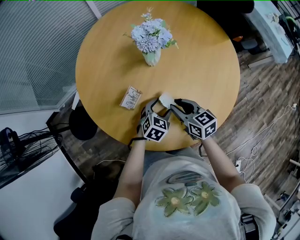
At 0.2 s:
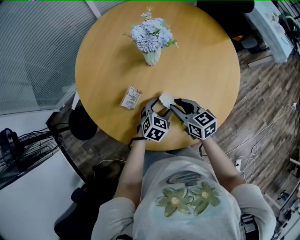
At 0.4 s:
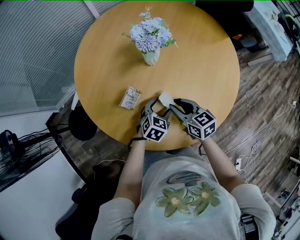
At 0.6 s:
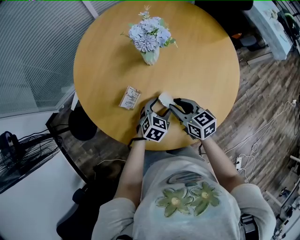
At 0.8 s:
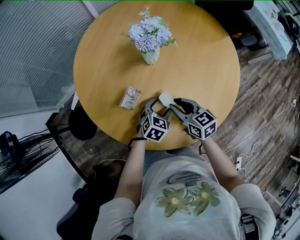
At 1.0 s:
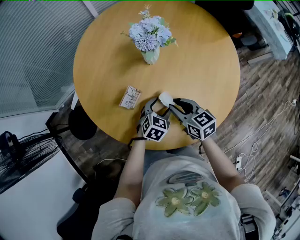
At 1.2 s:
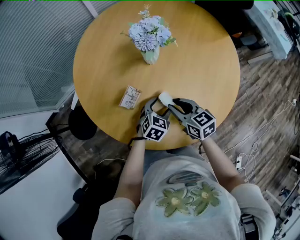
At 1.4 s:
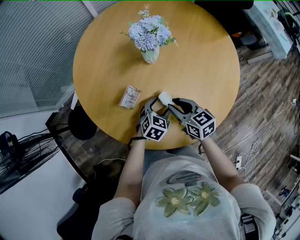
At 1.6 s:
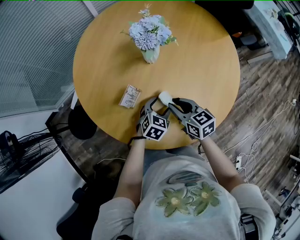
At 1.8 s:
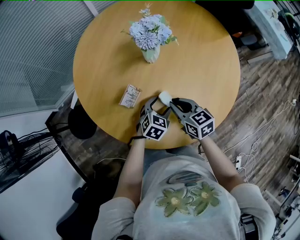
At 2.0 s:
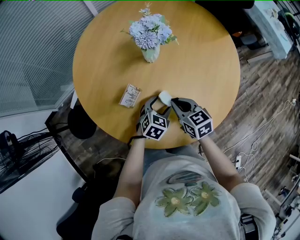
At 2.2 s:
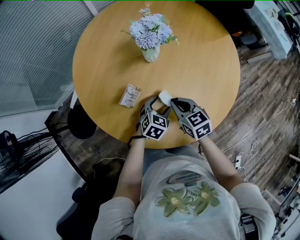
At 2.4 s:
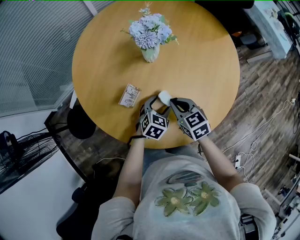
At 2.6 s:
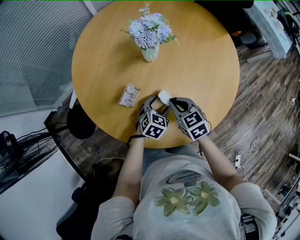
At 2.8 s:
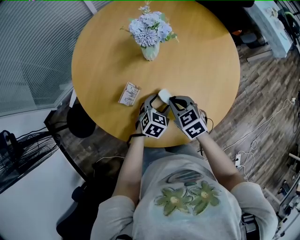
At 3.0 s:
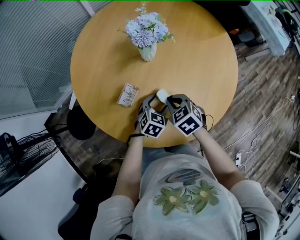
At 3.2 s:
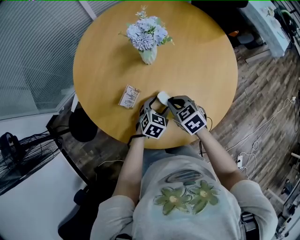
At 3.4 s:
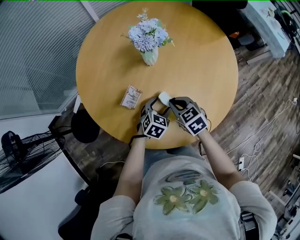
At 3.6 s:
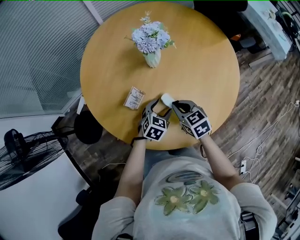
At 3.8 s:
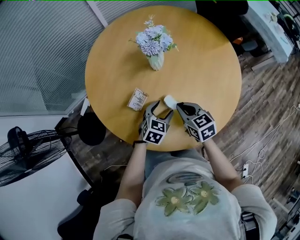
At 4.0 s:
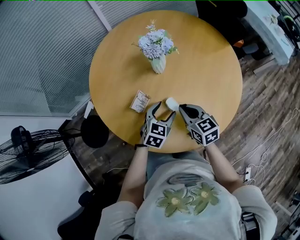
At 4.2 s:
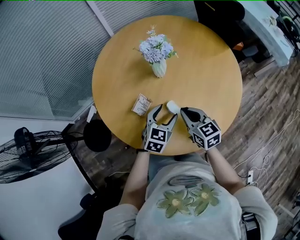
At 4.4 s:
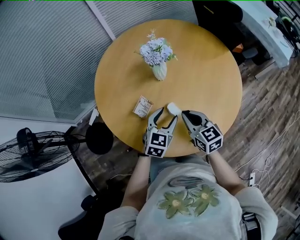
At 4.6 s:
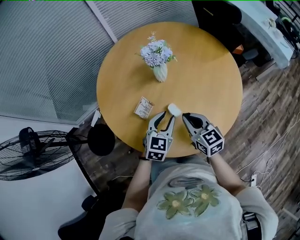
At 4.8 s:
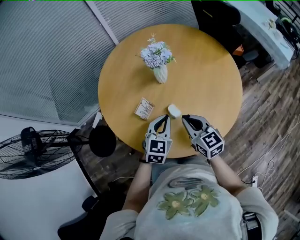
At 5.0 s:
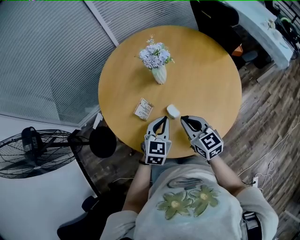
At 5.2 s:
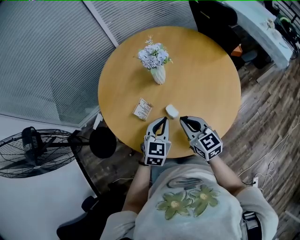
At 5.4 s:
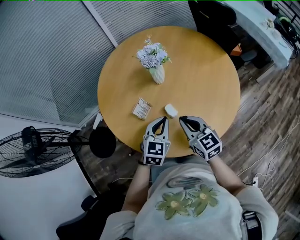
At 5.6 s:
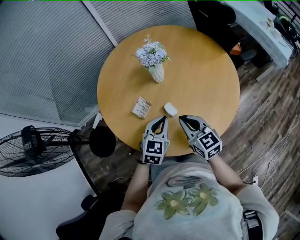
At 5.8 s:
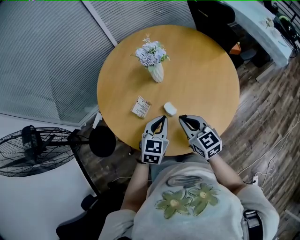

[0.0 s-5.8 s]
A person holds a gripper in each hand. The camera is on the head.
0.0 to 1.4 s: Both grippers stay about where they are.
1.4 to 2.8 s: The right gripper rotates about 30 degrees, and closes up.
2.8 to 4.4 s: Both grippers travel together upward, about 10 cm. The right gripper turns by approximately 30 degrees.
4.4 to 5.8 s: The left gripper changes place by roughly 5 cm, and closes. The right gripper shifts by approximately 5 cm.

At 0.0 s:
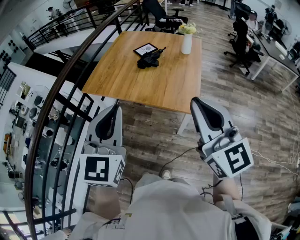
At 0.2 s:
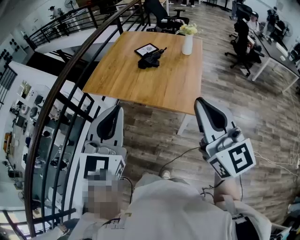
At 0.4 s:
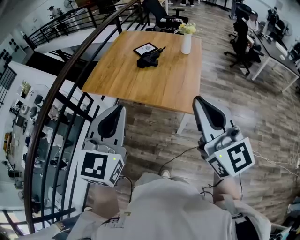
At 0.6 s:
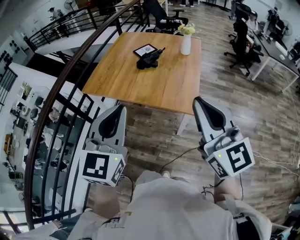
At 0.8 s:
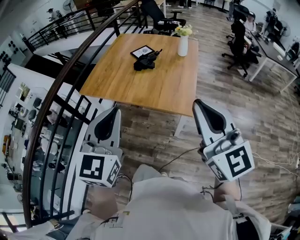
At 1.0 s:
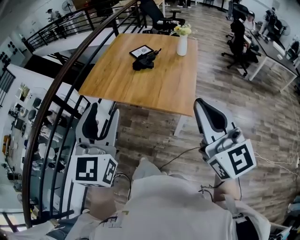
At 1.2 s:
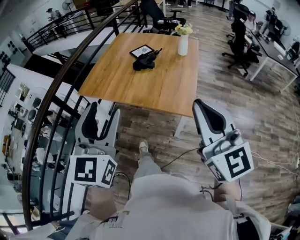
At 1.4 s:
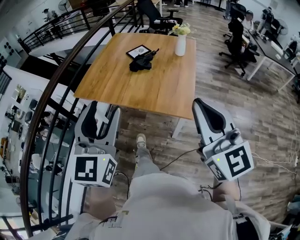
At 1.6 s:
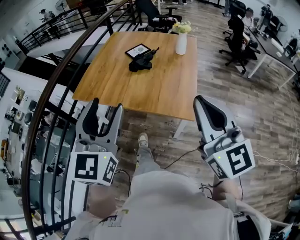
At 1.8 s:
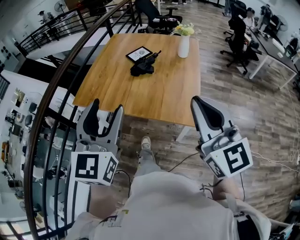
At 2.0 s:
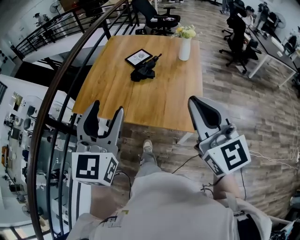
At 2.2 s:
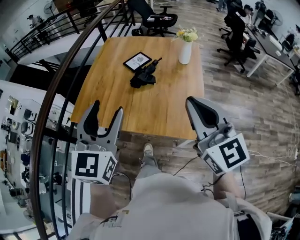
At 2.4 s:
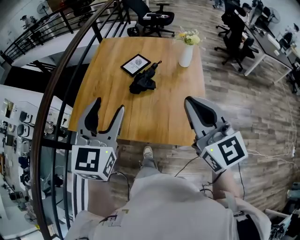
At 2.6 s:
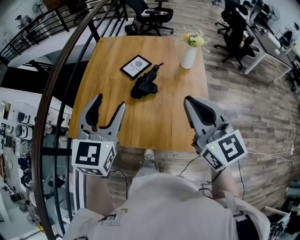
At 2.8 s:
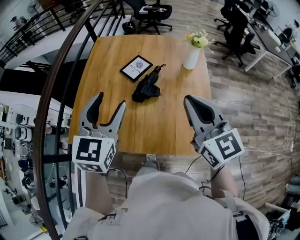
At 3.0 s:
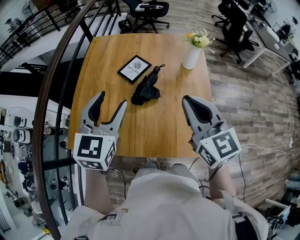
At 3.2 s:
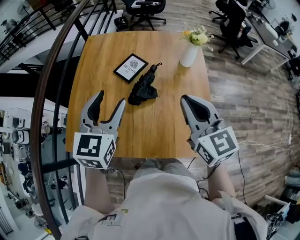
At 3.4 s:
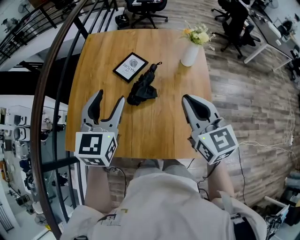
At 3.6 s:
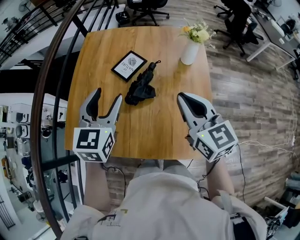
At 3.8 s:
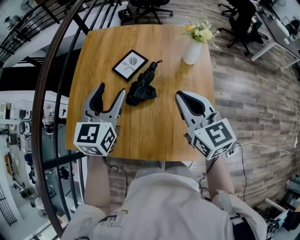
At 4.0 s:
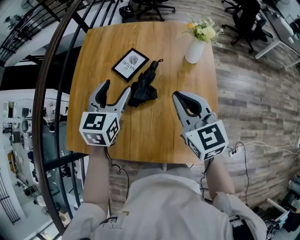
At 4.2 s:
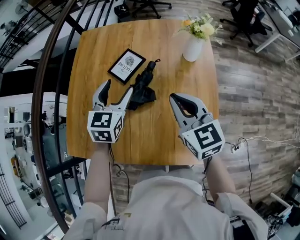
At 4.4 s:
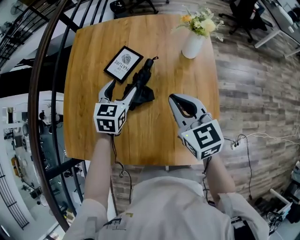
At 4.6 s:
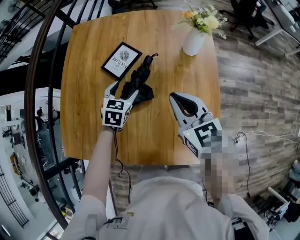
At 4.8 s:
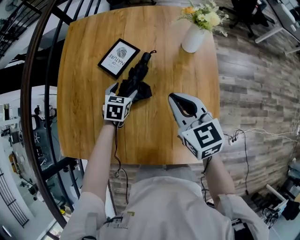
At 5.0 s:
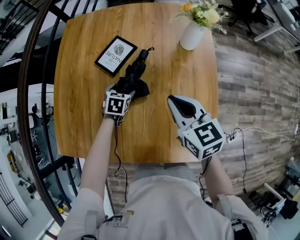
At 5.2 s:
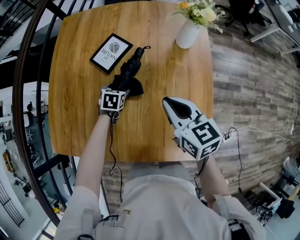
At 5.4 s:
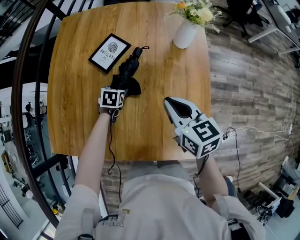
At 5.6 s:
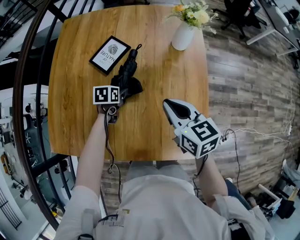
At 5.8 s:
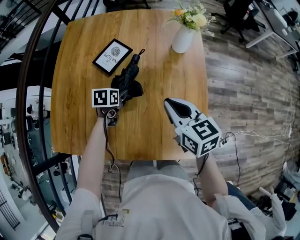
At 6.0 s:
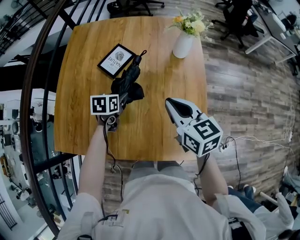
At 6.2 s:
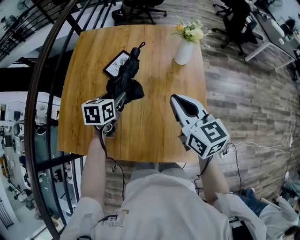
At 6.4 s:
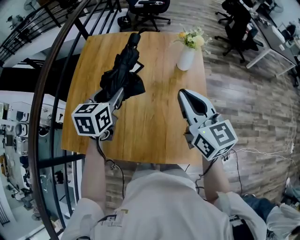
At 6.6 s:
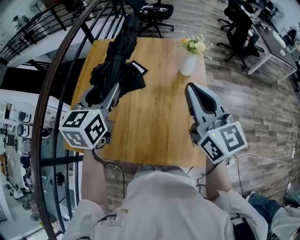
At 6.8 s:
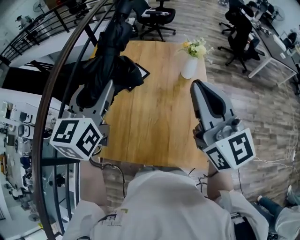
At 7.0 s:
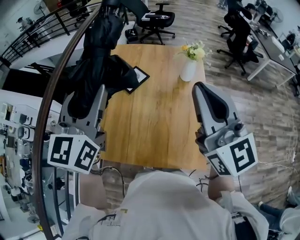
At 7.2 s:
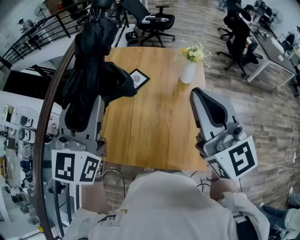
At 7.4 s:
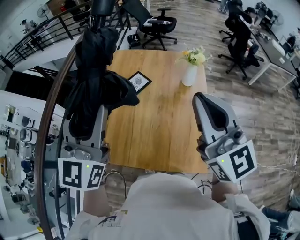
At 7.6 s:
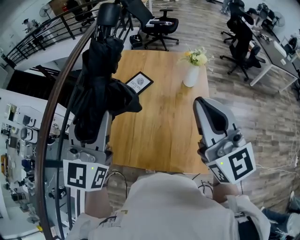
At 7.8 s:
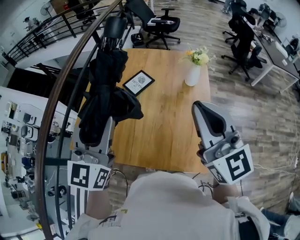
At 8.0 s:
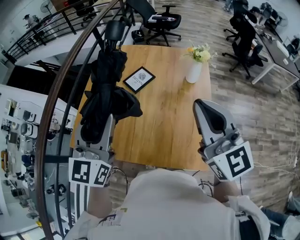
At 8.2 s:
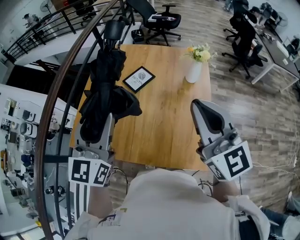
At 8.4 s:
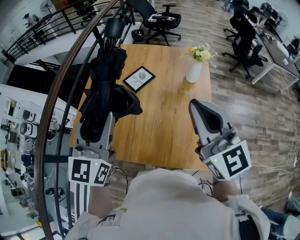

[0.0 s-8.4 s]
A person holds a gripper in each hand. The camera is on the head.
0.0 to 1.4 s: The left gripper opens its fingers.
1.4 to 2.8 s: The two grippers travel together, forward, roughly 50 cm. The left gripper swivels roughly 20 degrees.
2.8 to 4.2 s: The left gripper goes about 30 cm forward, downward and to the right, while the right gripper moves downward and forward, approximately 20 cm.
4.2 to 5.6 s: The right gripper heads downward, covering about 10 cm; the left gripper heads downward, covering some 30 cm, and tilts its fingers approximately 30 degrees downward.
5.6 to 7.0 s: The right gripper shifts about 35 cm upward, and points its fingers approximately 40 degrees further upward, while the left gripper shifts approximately 60 cm upward, and points its fingers approximately 60 degrees further upward.
7.0 to 8.4 s: The right gripper shifts by roughly 5 cm; the left gripper is displaced backward and downward by roughly 10 cm.

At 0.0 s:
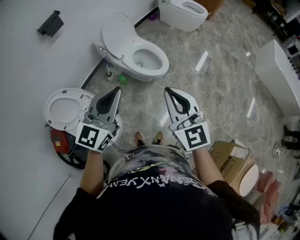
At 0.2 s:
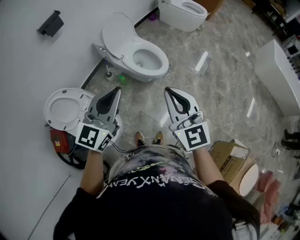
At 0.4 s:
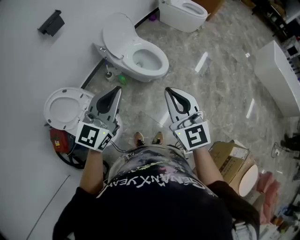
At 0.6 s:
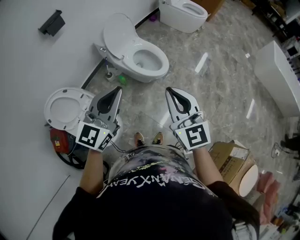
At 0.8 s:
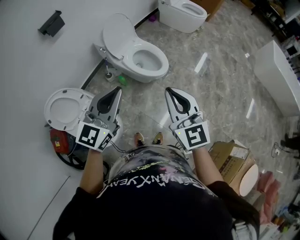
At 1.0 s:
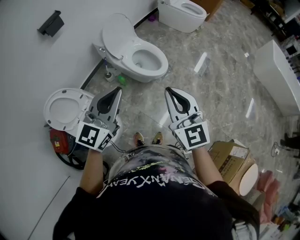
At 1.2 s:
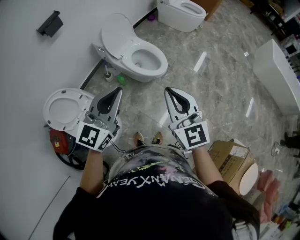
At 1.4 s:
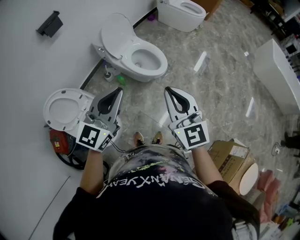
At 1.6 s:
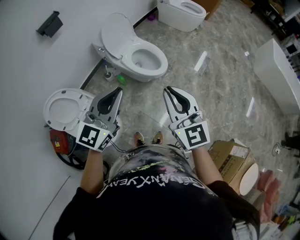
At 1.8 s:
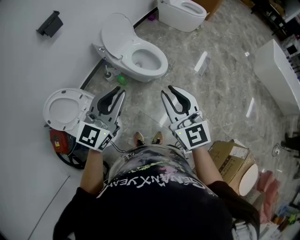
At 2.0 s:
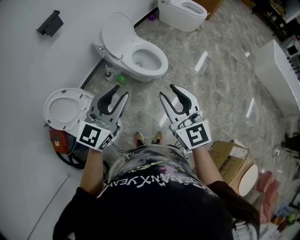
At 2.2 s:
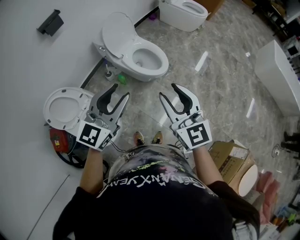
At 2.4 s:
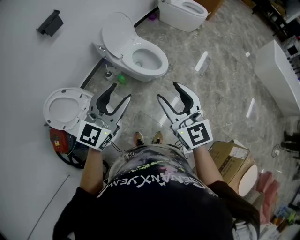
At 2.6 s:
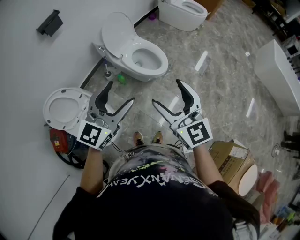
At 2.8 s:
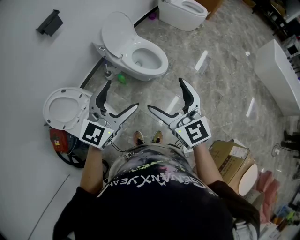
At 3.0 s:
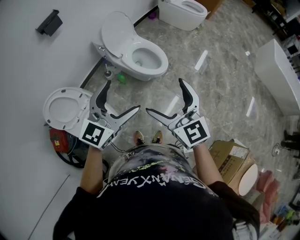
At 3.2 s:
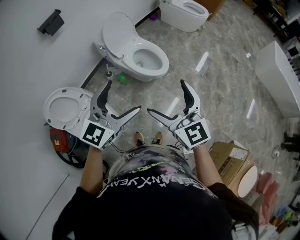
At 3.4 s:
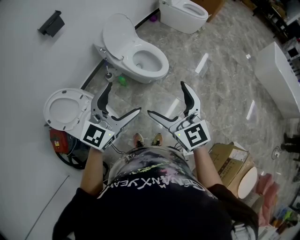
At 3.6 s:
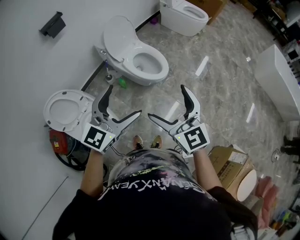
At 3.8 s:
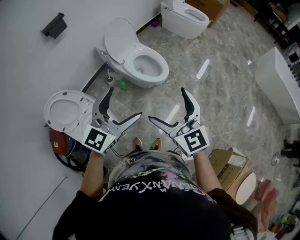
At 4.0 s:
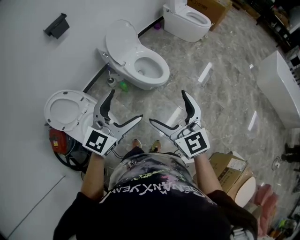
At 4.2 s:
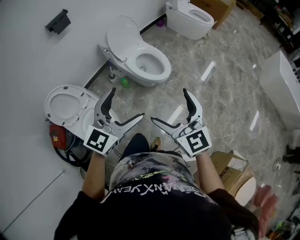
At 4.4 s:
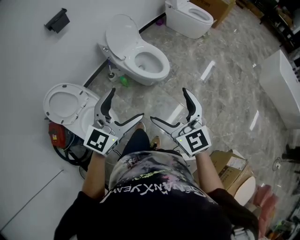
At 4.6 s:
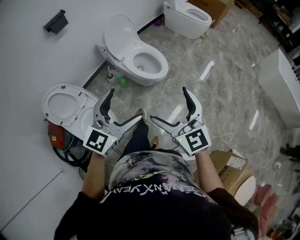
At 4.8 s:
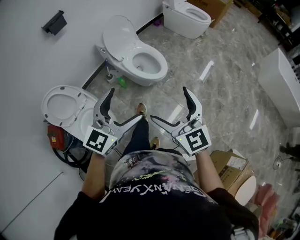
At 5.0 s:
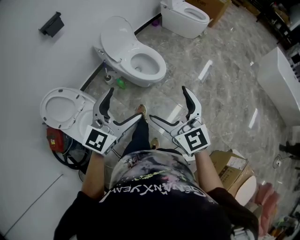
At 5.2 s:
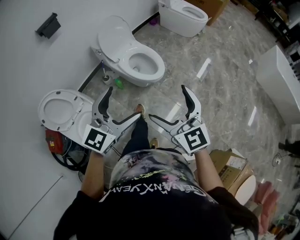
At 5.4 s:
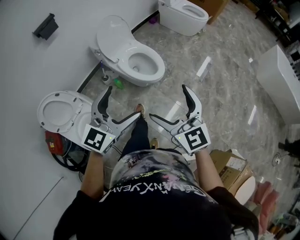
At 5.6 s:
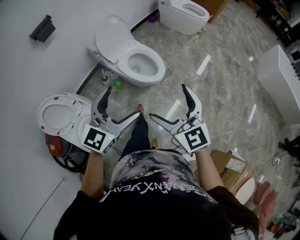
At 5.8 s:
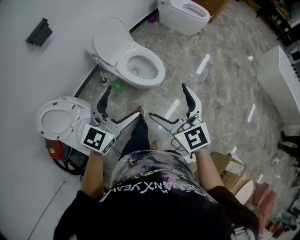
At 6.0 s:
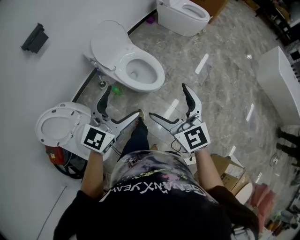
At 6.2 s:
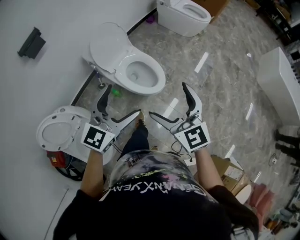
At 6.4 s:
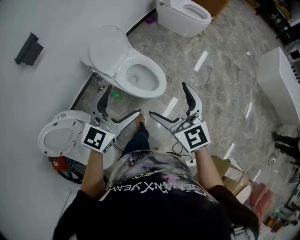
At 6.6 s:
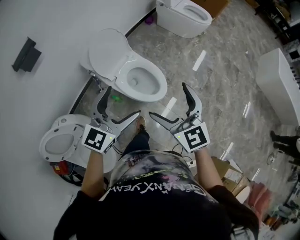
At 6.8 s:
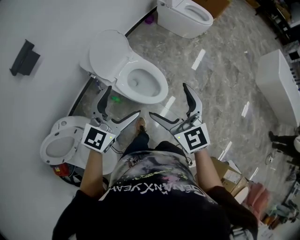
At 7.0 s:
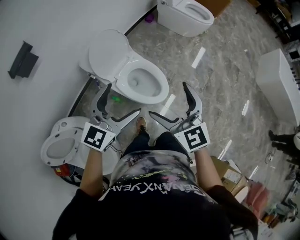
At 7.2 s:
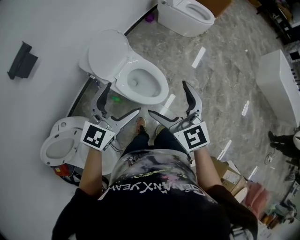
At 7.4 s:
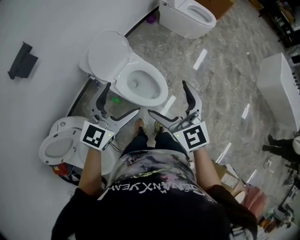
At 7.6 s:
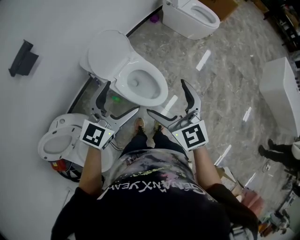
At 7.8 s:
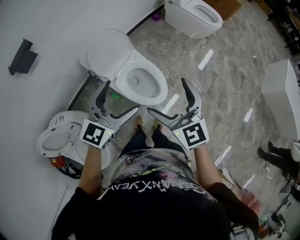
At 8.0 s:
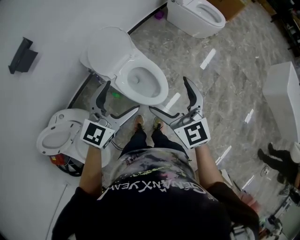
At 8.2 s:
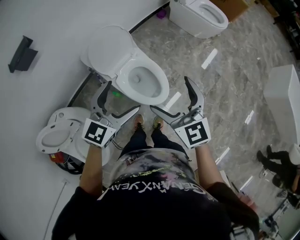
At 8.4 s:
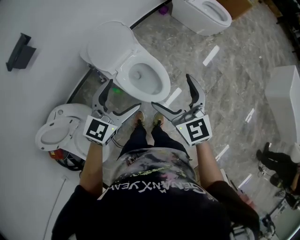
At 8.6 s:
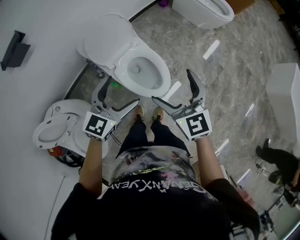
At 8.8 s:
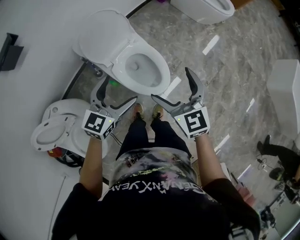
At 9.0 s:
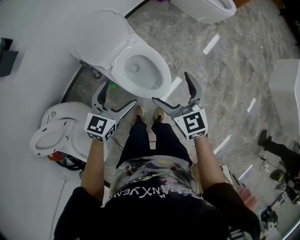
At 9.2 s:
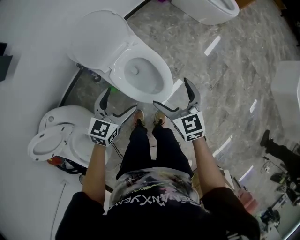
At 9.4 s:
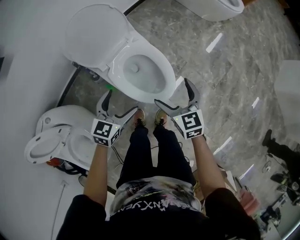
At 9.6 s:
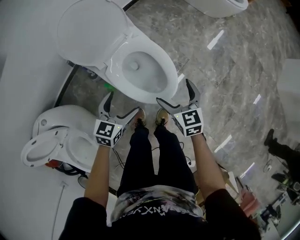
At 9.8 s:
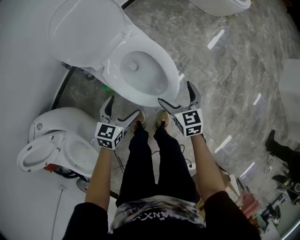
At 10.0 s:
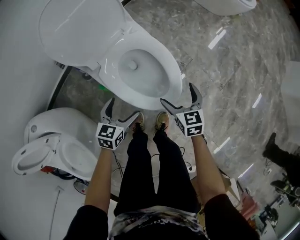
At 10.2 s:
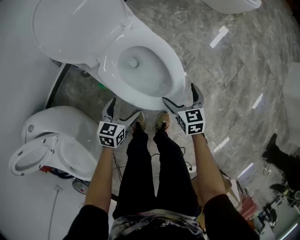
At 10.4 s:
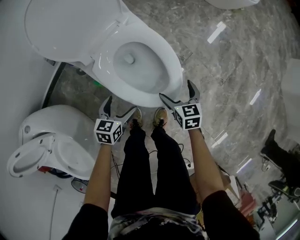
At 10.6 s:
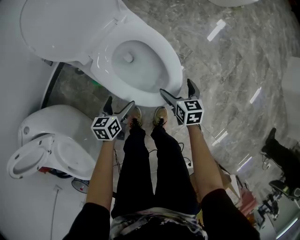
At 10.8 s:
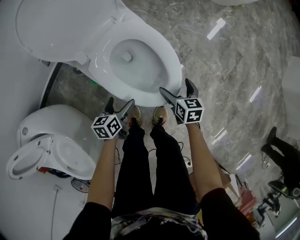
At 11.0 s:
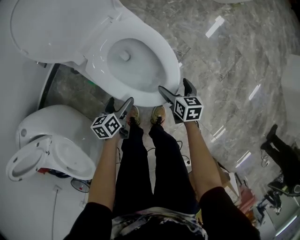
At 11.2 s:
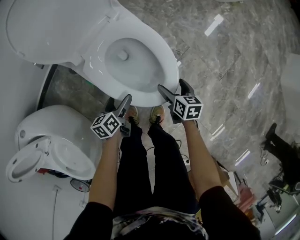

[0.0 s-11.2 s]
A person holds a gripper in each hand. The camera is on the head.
0.0 to 1.6 s: Both grippers stay put.
1.6 to 3.2 s: The left gripper opens its fingers, while the right gripper opens.
3.2 to 4.8 s: The two grippers go some 5 cm to the right.
4.8 to 6.4 s: The grippers both shift forward by approximately 30 cm.
6.4 to 8.0 s: Both grippers travel together forward, some 15 cm.
8.0 to 9.6 s: Both grippers travel together downward, some 40 cm. The right gripper swivels approximately 30 degrees, while the left gripper rotates approximately 30 degrees.
9.6 to 11.2 s: Both grippers travel together downward, approximately 25 cm. The left gripper rotates around the line of its fingers by roughly 50 degrees, counterclockwise from behind; the right gripper turns by approximately 30 degrees.
